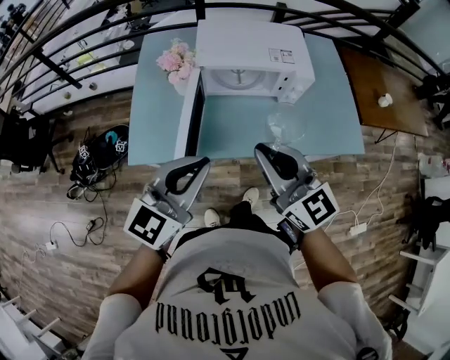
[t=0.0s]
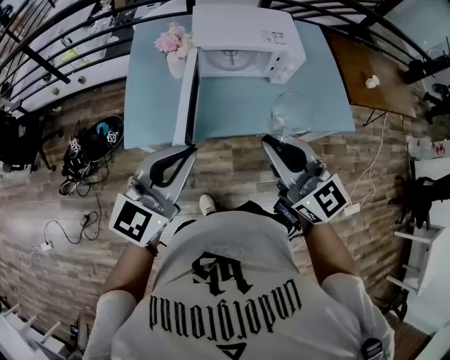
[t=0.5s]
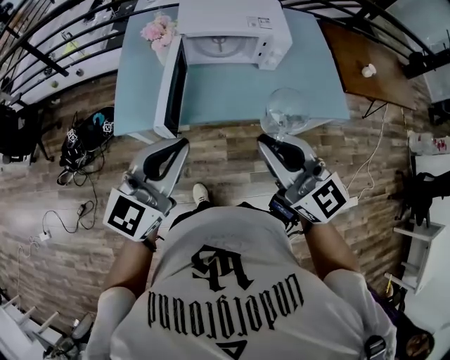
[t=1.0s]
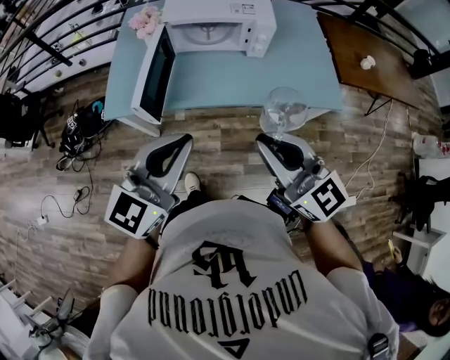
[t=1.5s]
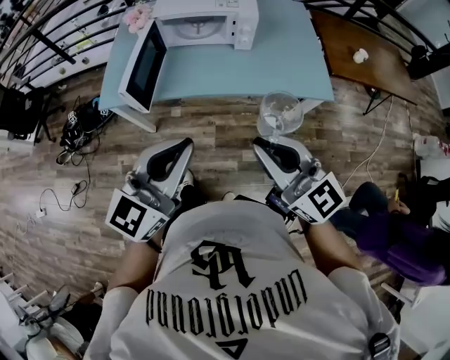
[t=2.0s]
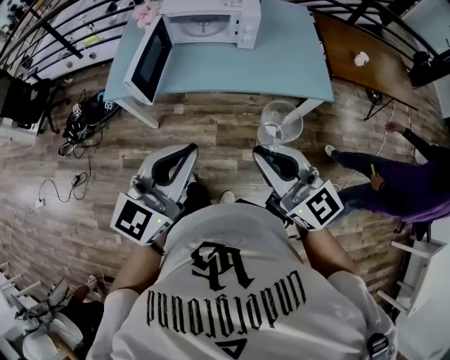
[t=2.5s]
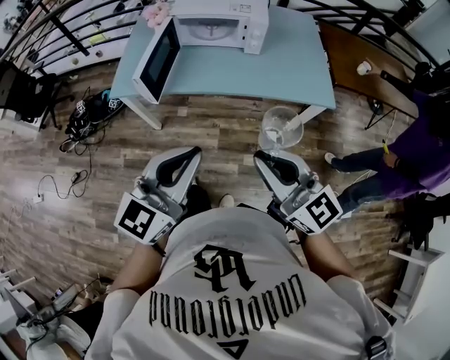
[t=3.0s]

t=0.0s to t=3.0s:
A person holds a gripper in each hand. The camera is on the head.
t=0.0s to t=1.5s: The grippers both shift backward and to the right by roughly 20 cm.
t=1.5s to t=3.0s: The right gripper is displaced backward by about 15 cm. The left gripper is displaced backward and to the right by about 15 cm.

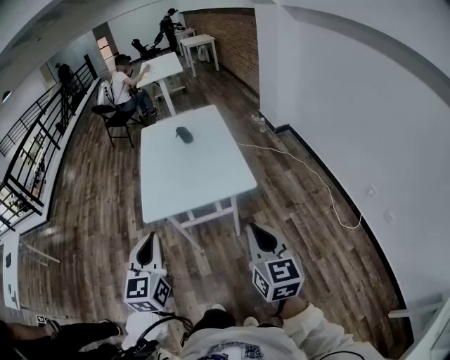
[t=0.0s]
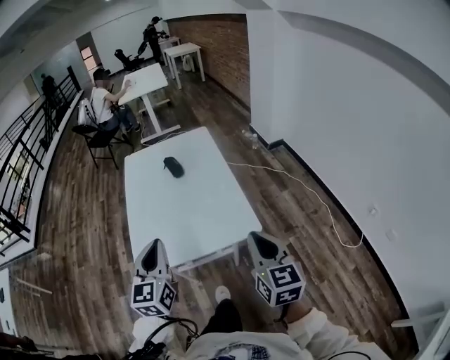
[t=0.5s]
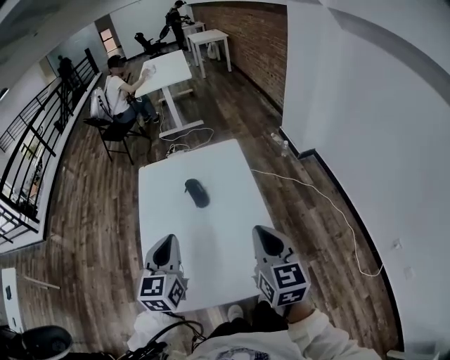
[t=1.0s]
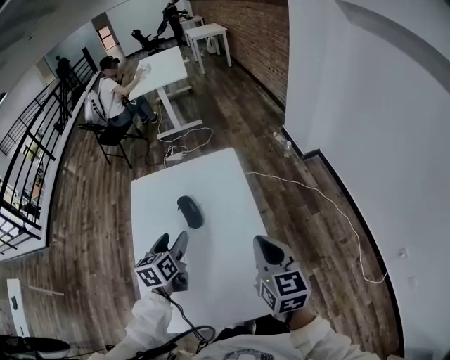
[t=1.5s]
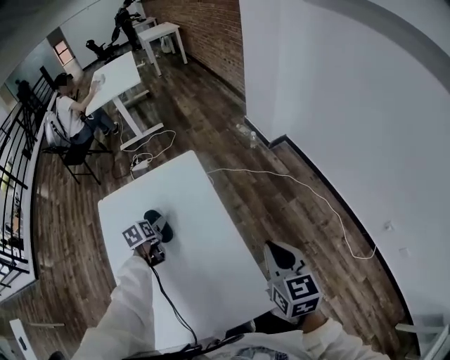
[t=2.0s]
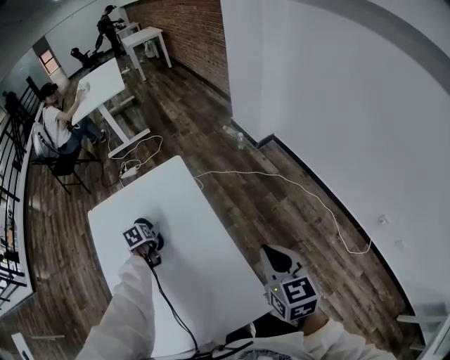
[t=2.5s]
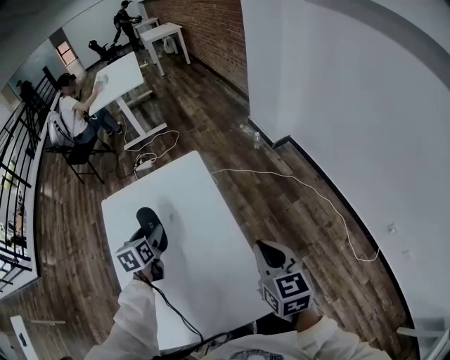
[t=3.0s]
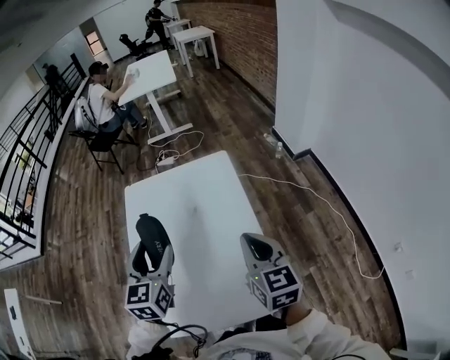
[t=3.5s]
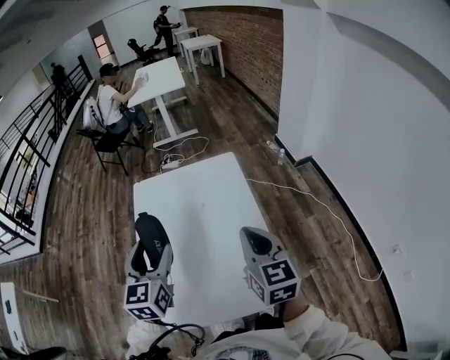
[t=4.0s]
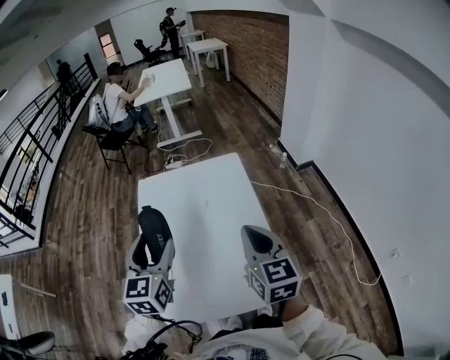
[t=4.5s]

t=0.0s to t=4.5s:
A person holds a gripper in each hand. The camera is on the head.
t=0.0s to t=2.0s: The two grippers travel together, forward, approximately 60 cm. The left gripper is displaced downward by approximately 30 cm, points its fingers some 40 degrees further downward, and opens up.
t=2.0s to t=4.5s: The left gripper goes roughly 35 cm upward and backward, and tilts its fingers about 40 degrees upward; the right gripper travels to the left and upward by some 20 cm.

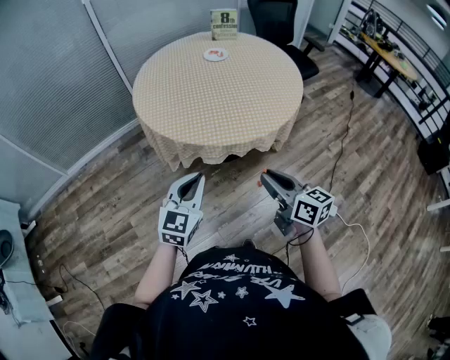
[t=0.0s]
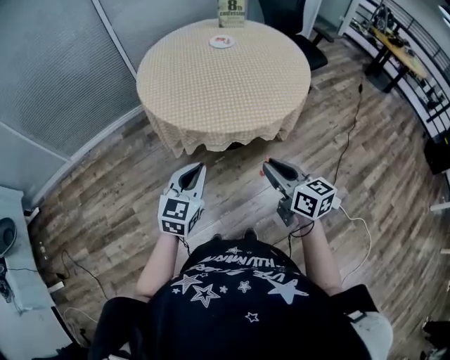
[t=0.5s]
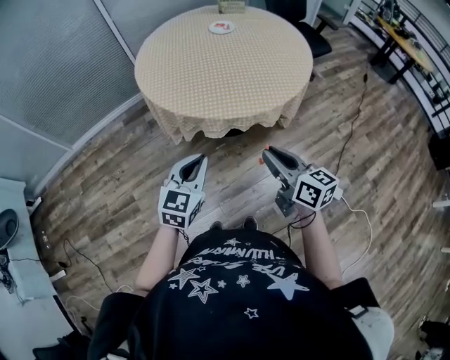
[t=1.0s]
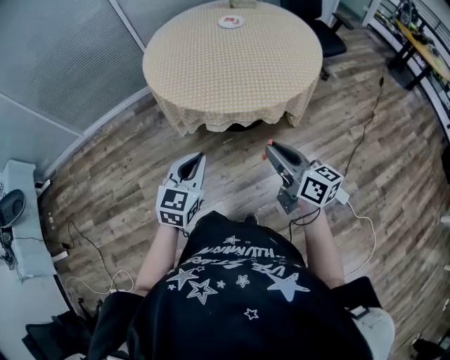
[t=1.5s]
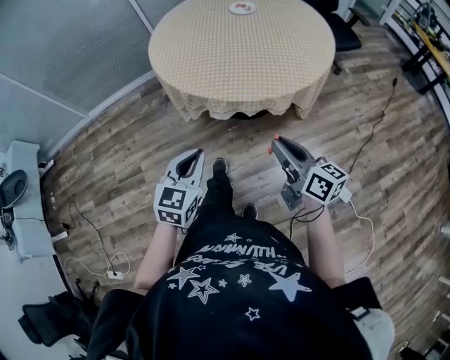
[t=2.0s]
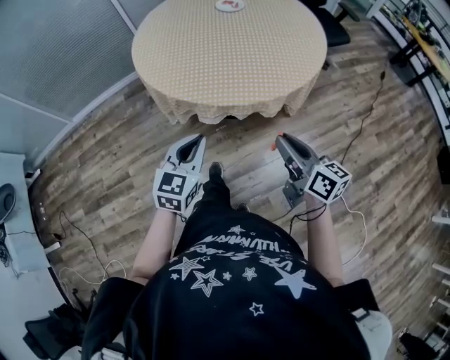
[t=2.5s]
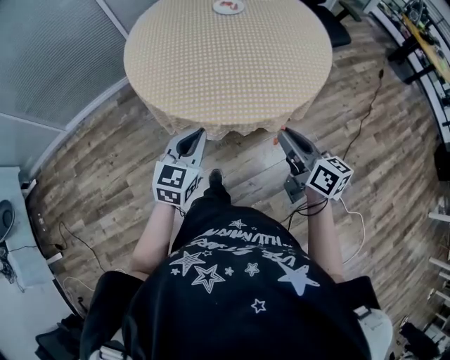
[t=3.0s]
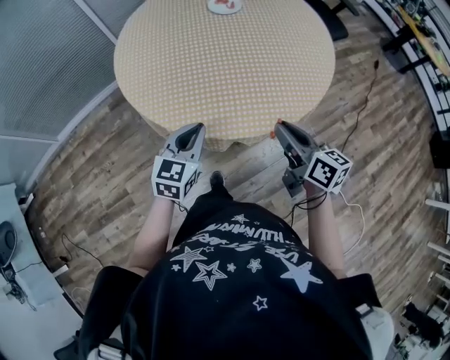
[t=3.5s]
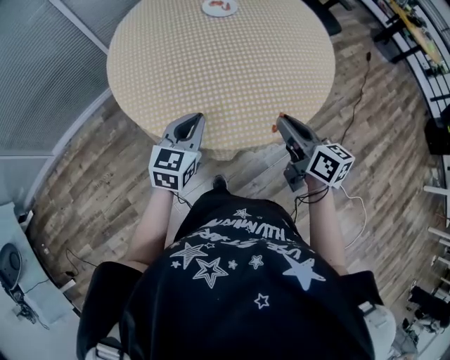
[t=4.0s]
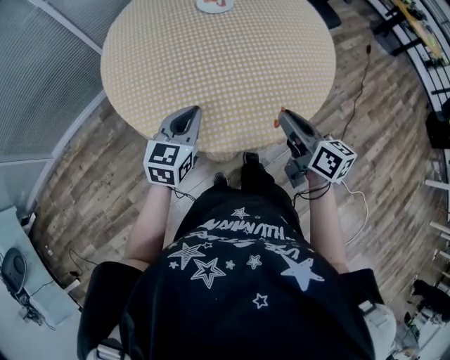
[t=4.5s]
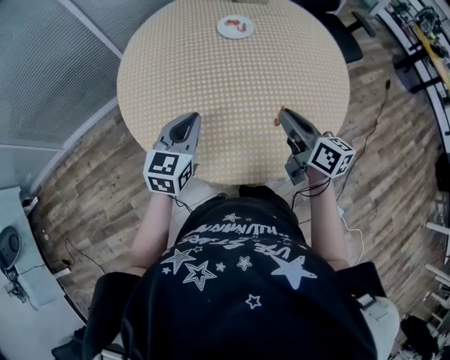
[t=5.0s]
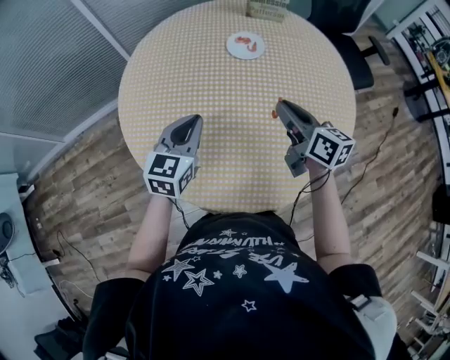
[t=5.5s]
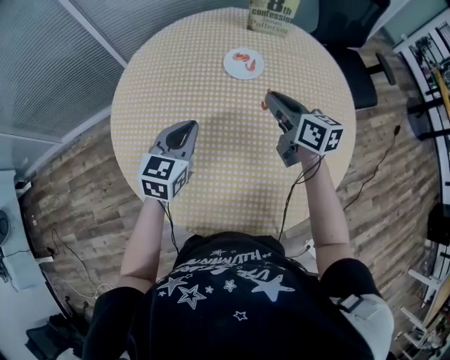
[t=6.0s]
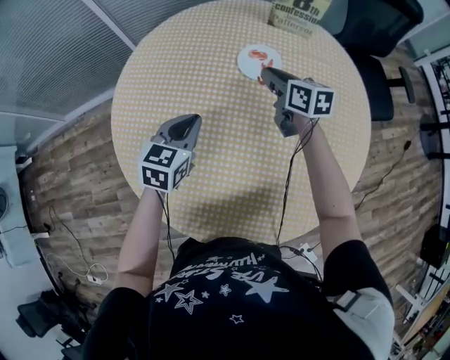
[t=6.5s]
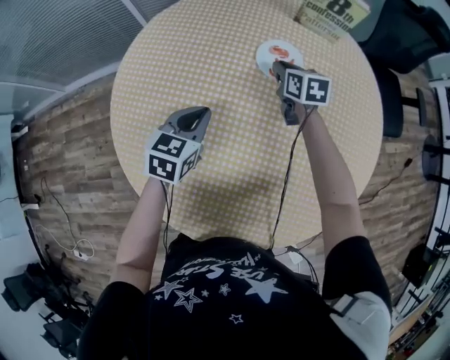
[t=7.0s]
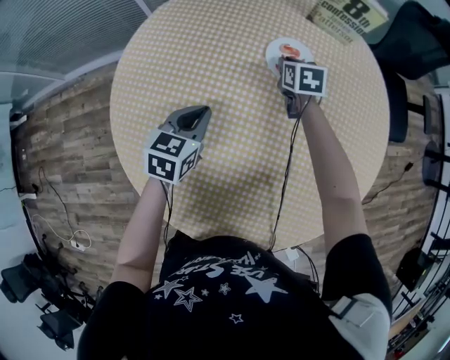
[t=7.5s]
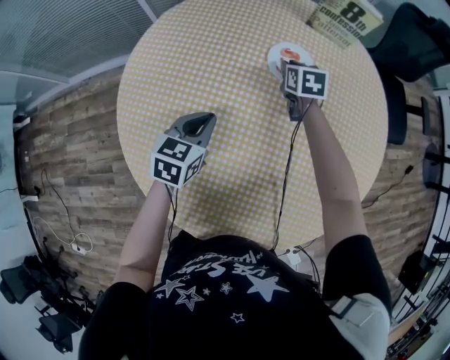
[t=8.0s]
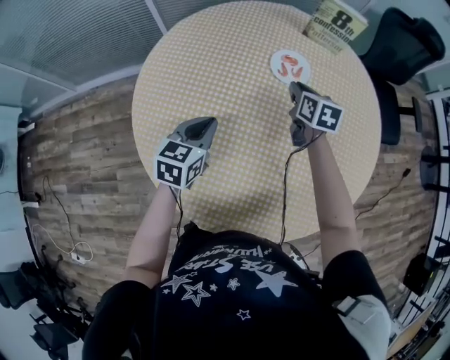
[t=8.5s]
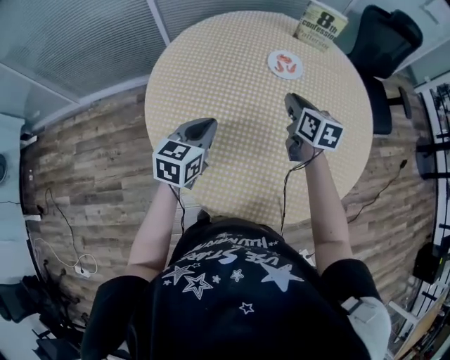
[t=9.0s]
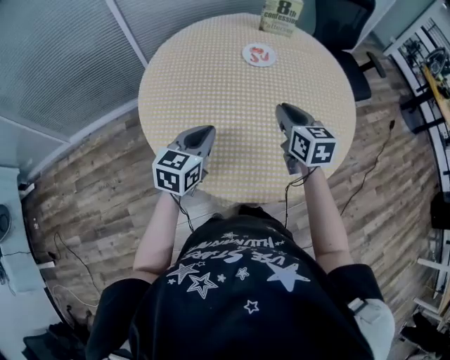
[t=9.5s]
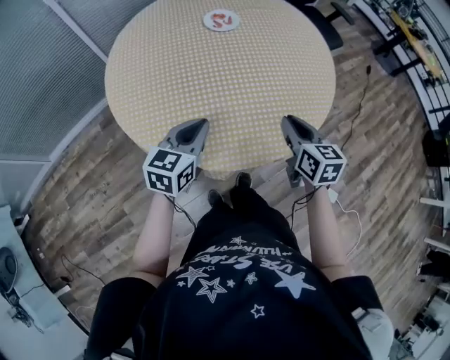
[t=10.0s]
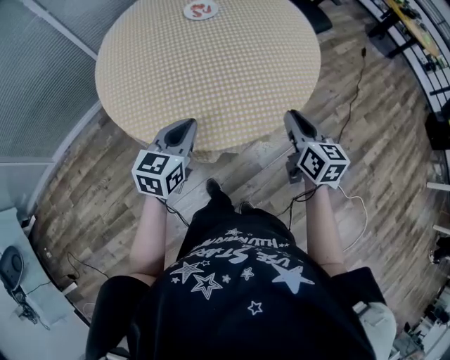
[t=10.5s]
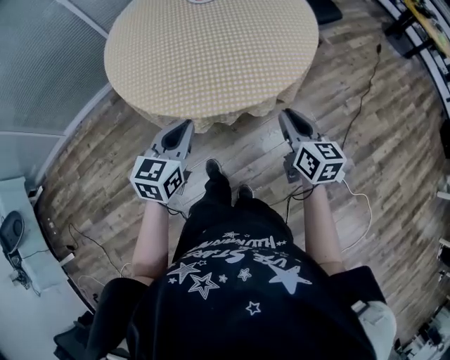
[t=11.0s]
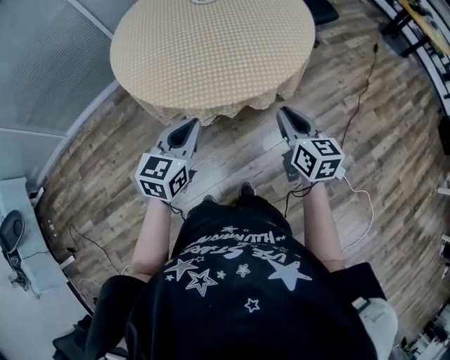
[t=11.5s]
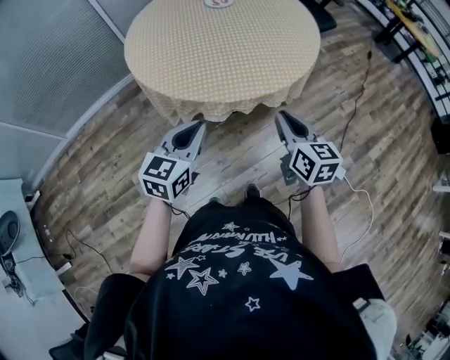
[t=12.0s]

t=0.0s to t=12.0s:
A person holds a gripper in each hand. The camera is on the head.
t=0.0s to t=2.0s: The right gripper goes about 5 cm to the right. The left gripper ends up about 10 cm from where it was.
t=2.0s to t=4.0s: Both grippers move forward, about 30 cm.
t=4.0s to t=6.0s: The right gripper goes approximately 40 cm forward. The left gripper travels forward by roughly 25 cm.
t=6.0s to t=8.0s: The left gripper is displaced downward by about 10 cm. The right gripper travels forward and downward by about 25 cm, and points its fingers about 30 degrees further downward.
t=8.0s to t=10.0s: The right gripper is displaced backward by roughly 50 cm, and rotates some 30 degrees. Meanwhile the left gripper travels backward by roughly 25 cm, and turns by some 30 degrees.
t=10.0s to t=12.0s: The grippers both shift backward by some 25 cm.

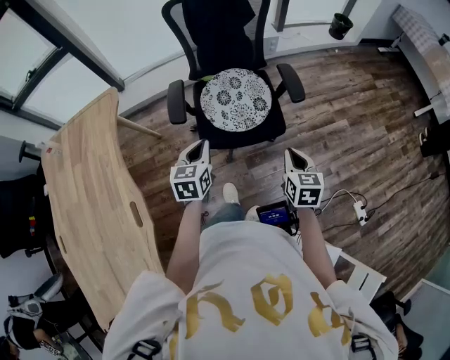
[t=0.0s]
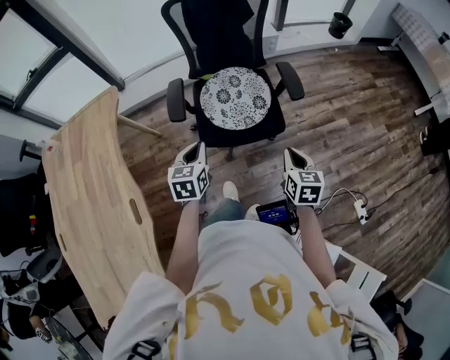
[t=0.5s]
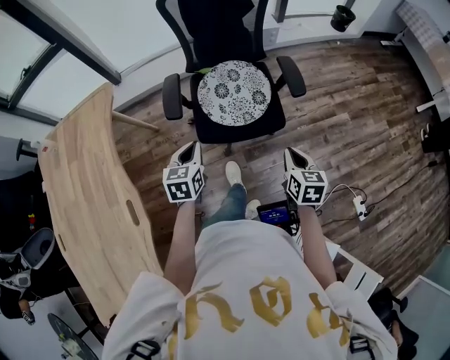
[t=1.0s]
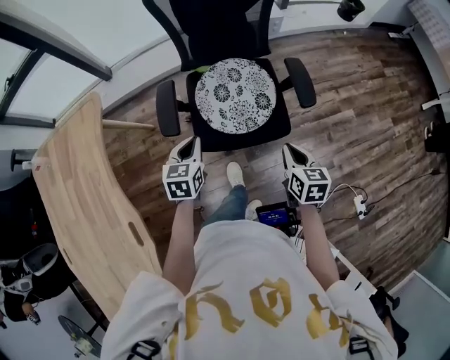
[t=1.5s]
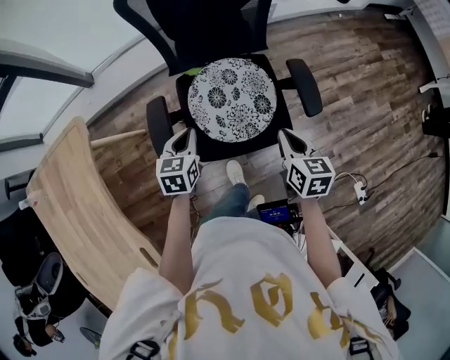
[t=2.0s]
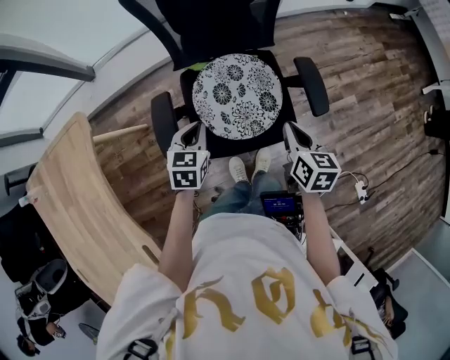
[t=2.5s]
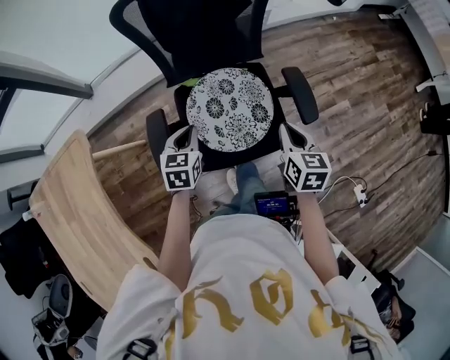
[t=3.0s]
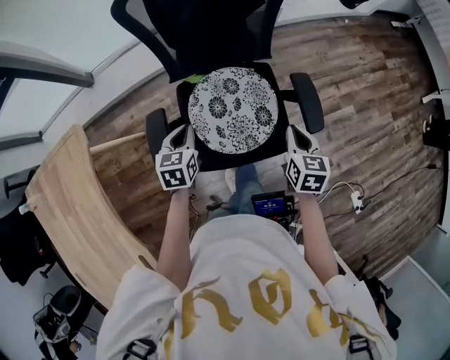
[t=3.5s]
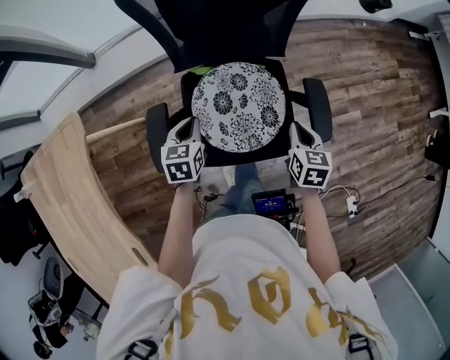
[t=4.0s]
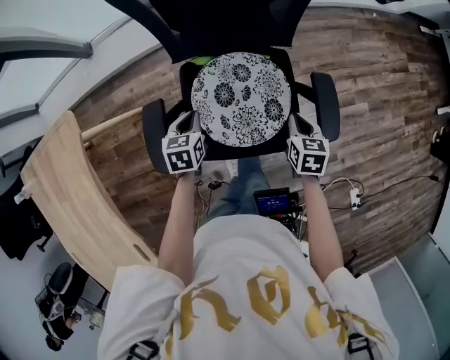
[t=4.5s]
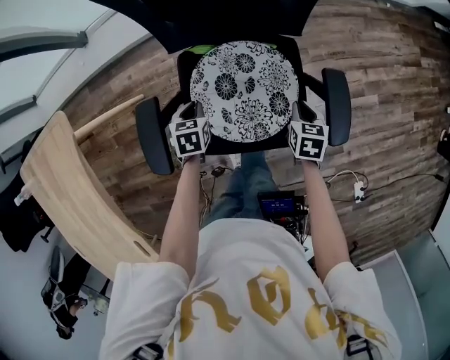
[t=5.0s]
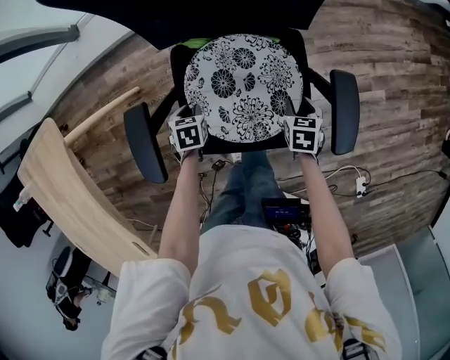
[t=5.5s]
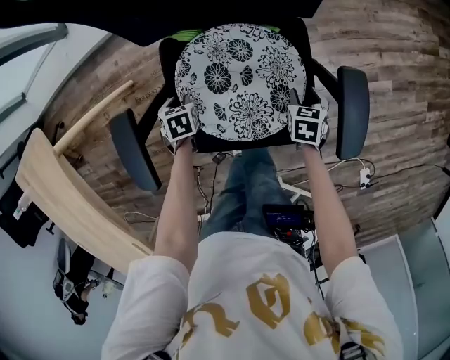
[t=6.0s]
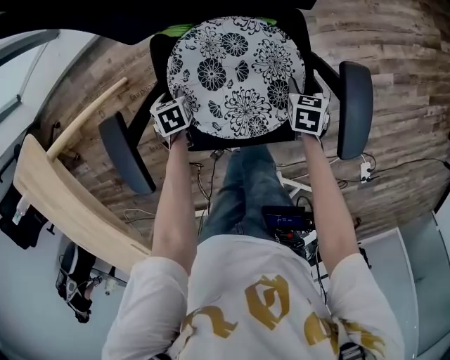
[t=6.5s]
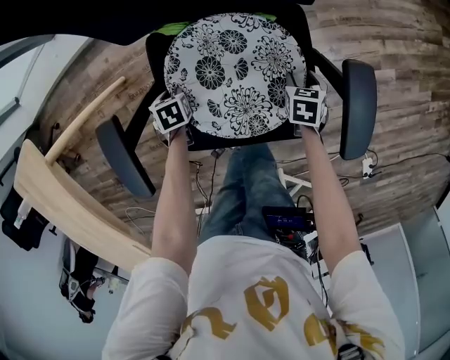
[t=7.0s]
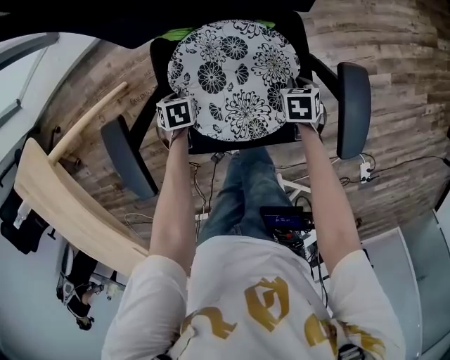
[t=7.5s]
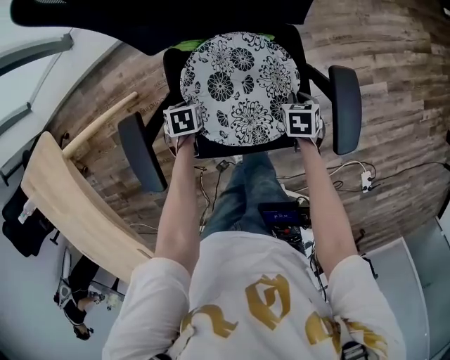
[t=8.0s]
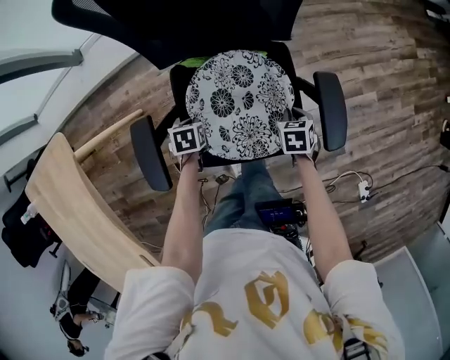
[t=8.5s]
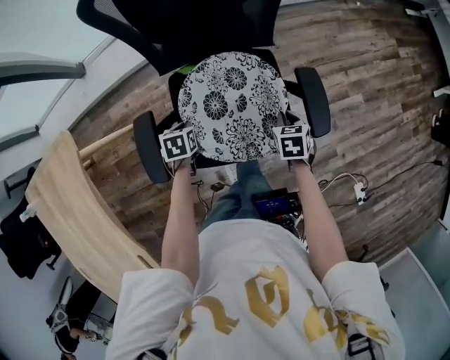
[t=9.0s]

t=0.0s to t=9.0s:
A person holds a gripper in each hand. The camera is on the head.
t=0.0s to t=2.0s: The right gripper shifts roughly 25 cm forward, while the left gripper moves forward and downward, approximately 25 cm.
t=2.0s to t=4.5s: The two grippers go some 15 cm forward and downward.
t=4.5s to t=7.0s: The two grippers go about 25 cm downward. The left gripper rotates some 30 degrees, and opens up, while the right gripper opens.
t=7.0s to t=9.0s: The left gripper closes. Meanwhile the right gripper goes roughly 10 cm upward, and closes up.
